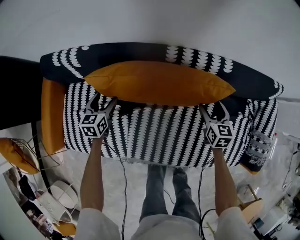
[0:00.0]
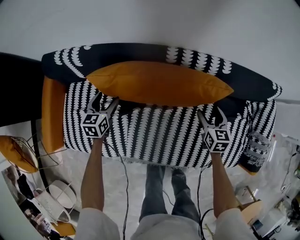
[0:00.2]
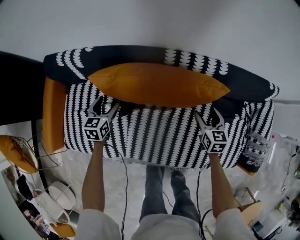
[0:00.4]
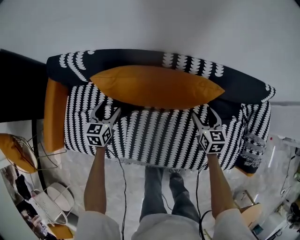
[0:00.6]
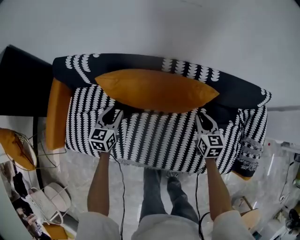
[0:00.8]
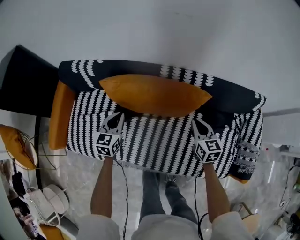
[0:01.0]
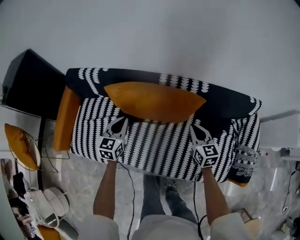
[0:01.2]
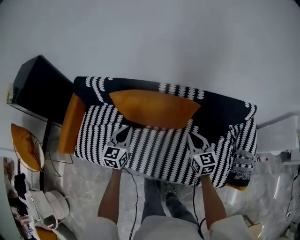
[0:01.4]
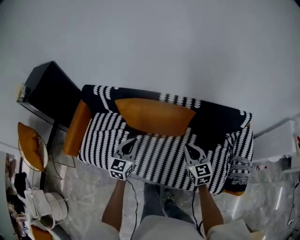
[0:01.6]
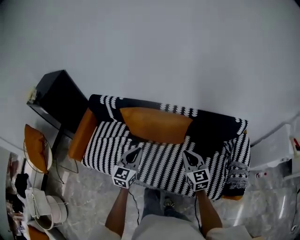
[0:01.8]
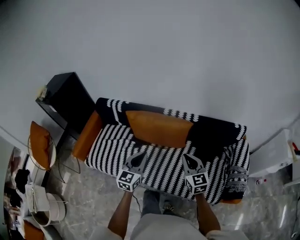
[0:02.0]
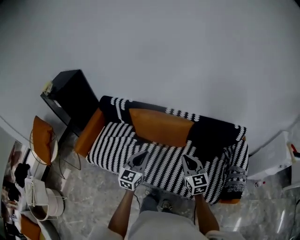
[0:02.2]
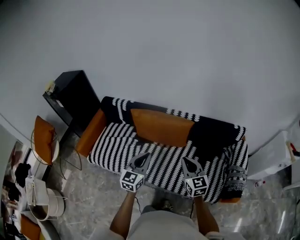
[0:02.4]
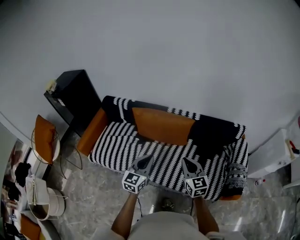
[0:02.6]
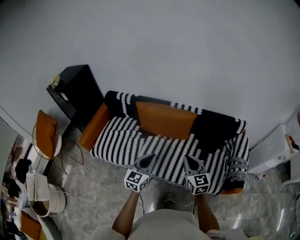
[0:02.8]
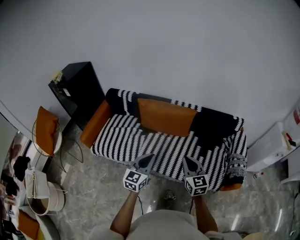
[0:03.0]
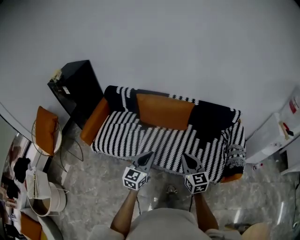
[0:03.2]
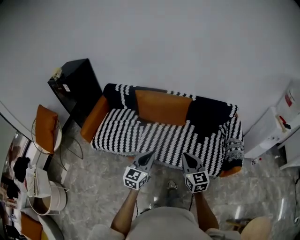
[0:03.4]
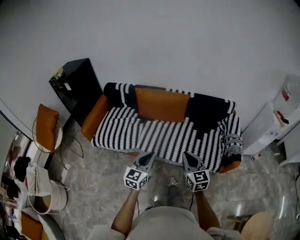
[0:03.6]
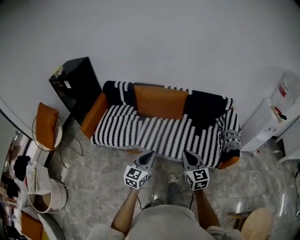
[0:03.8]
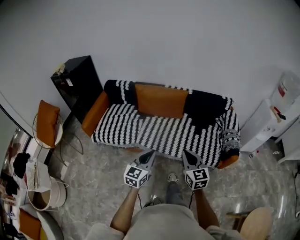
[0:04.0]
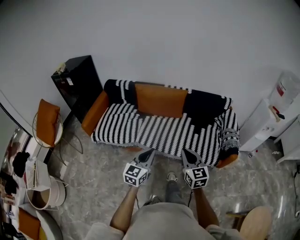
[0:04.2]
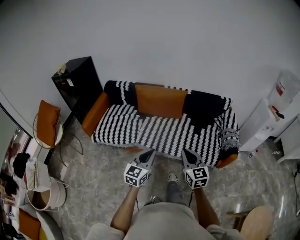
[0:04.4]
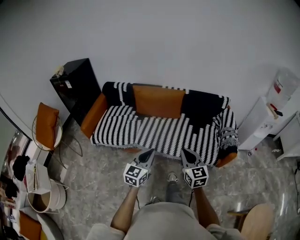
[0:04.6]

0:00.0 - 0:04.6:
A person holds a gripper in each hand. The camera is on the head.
0:00.0 - 0:01.6: The left gripper moves upward, backward and to the right, approximately 40 cm, changes its angle by approximately 20 degrees, and closes up; the right gripper moves upward and backward, roughly 30 cm, changes its angle by approximately 30 degrees, and closes its fingers.
0:01.6 - 0:03.0: Both grippers travel together backward, roughly 25 cm.
0:03.0 - 0:04.6: The grippers both shift backward by some 20 cm.

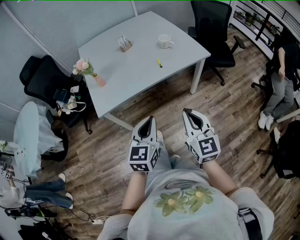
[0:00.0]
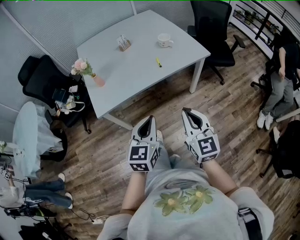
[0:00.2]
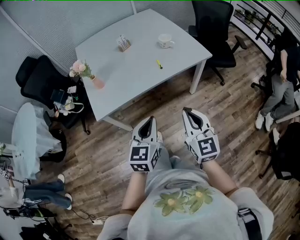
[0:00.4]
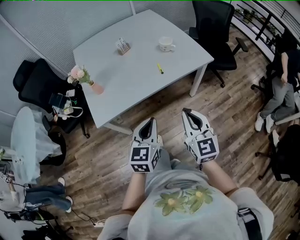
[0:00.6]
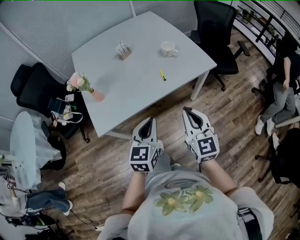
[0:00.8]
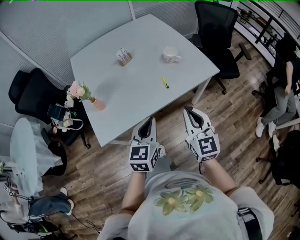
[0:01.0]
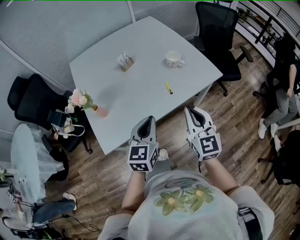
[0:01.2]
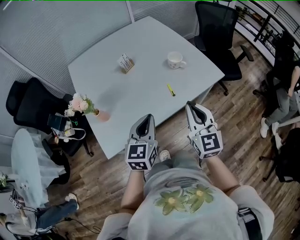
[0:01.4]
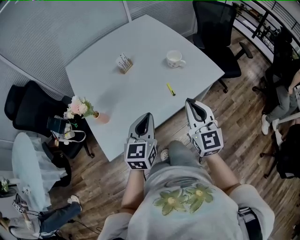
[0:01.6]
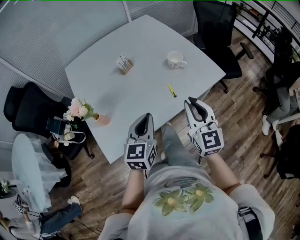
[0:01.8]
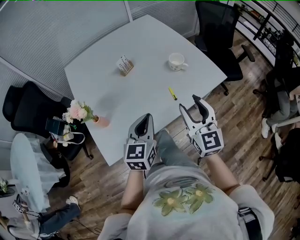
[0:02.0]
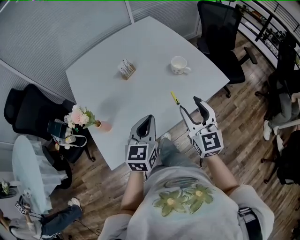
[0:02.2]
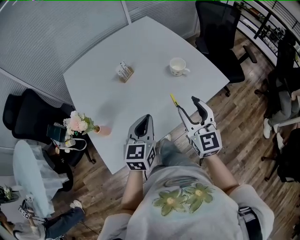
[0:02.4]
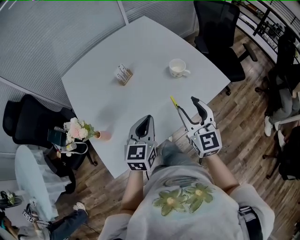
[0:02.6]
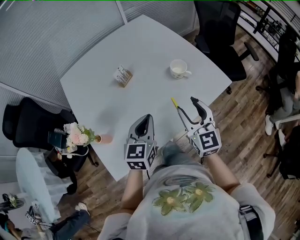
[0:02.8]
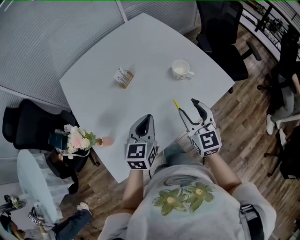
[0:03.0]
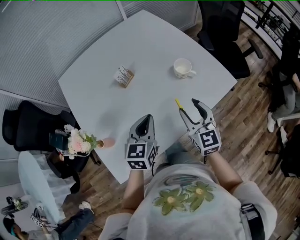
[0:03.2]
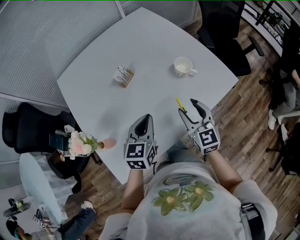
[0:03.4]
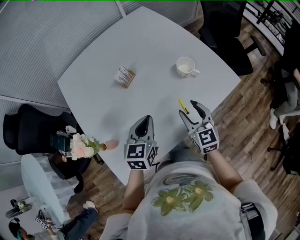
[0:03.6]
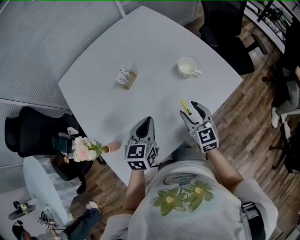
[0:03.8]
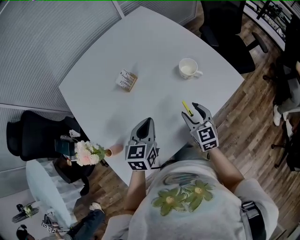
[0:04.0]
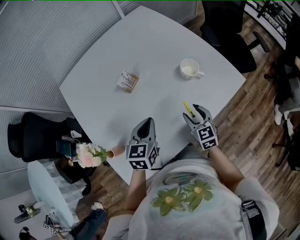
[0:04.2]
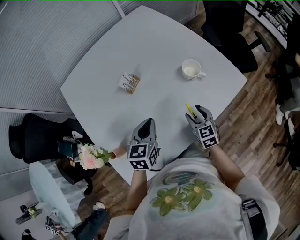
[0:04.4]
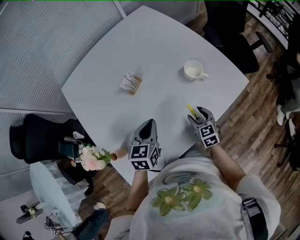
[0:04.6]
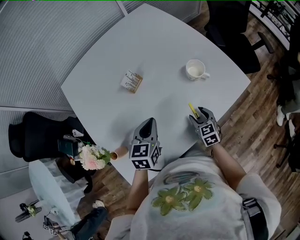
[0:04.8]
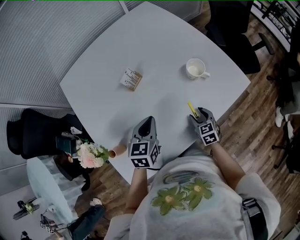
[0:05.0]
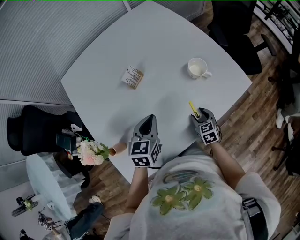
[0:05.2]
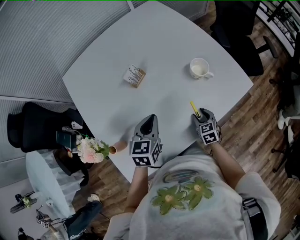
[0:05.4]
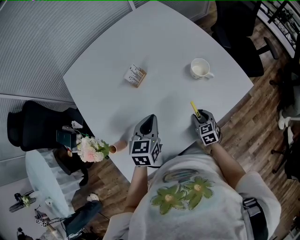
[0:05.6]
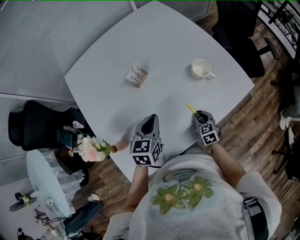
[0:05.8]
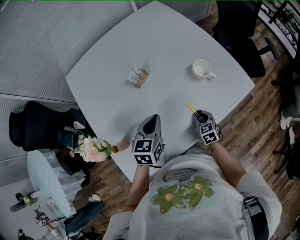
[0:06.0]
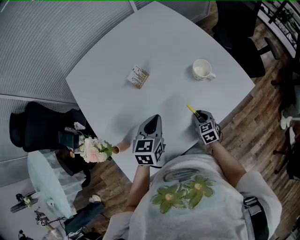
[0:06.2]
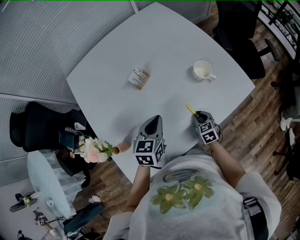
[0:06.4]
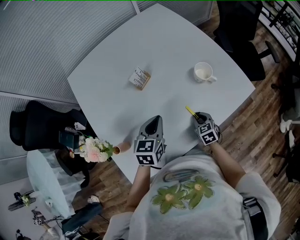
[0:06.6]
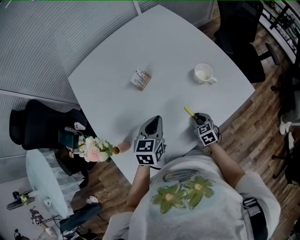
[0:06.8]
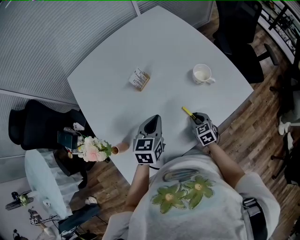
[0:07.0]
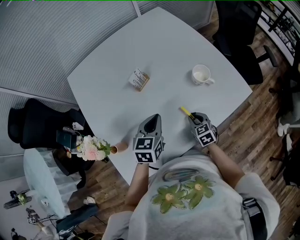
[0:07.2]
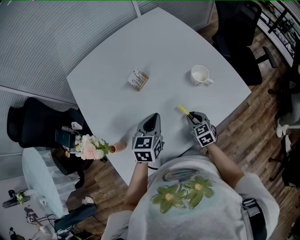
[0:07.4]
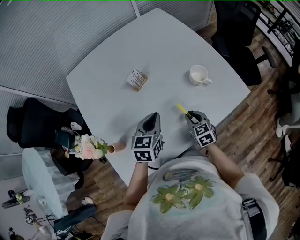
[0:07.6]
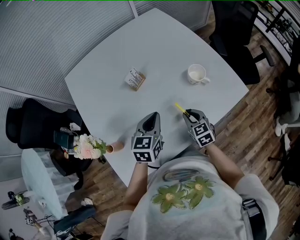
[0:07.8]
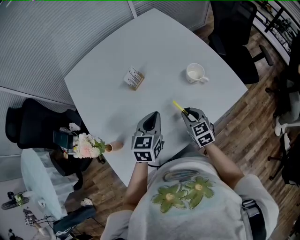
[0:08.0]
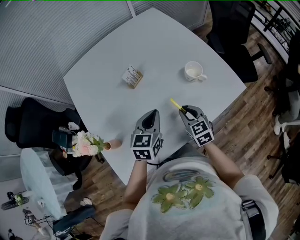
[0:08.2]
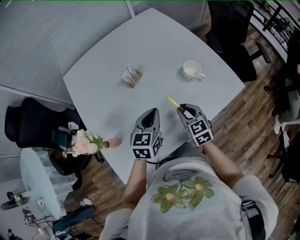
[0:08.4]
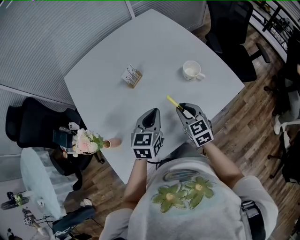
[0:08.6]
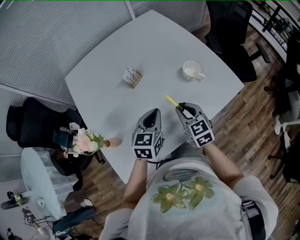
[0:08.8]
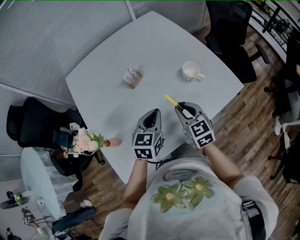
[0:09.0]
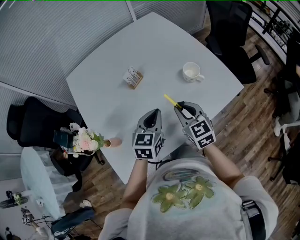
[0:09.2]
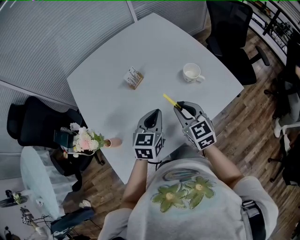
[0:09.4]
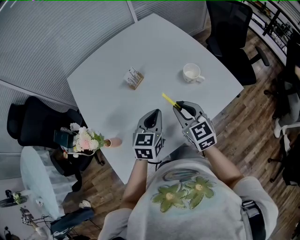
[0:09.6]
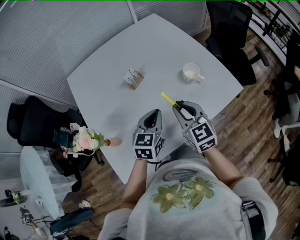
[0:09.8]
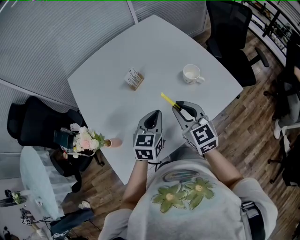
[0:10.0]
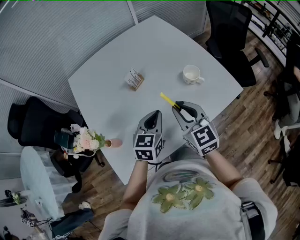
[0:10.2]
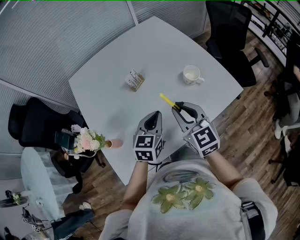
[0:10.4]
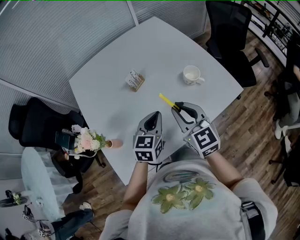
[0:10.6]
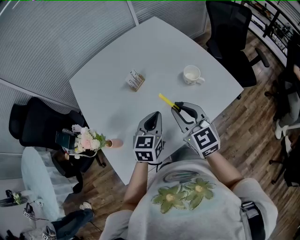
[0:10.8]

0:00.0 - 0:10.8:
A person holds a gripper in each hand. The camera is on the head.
0:00.0 - 0:01.6: Both grippers travel together forward, some 30 cm.
0:01.6 - 0:03.0: The left gripper heads forward, covering about 15 cm. Meanwhile the right gripper heads forward and downward, covering approximately 15 cm, and opens its fingers.
0:03.0 - 0:04.6: The left gripper heads forward, downward and to the left, covering approximately 10 cm. Meanwhile the right gripper is displaced downward by about 20 cm, and swivels approximately 30 degrees.
0:04.6 - 0:06.2: The right gripper heads downward, covering approximately 5 cm, and closes its fingers.
0:06.2 - 0:07.8: The right gripper shifts roughly 10 cm upward.
0:07.8 - 0:09.2: The right gripper goes about 15 cm upward.
0:09.2 - 0:10.8: The right gripper shifts about 10 cm upward.

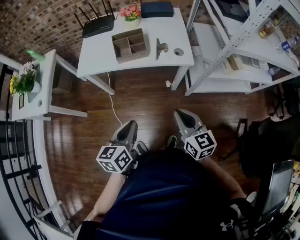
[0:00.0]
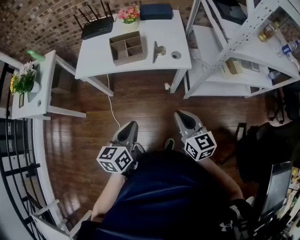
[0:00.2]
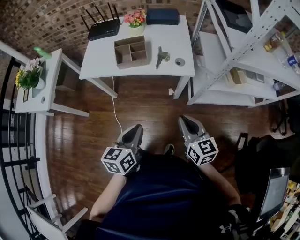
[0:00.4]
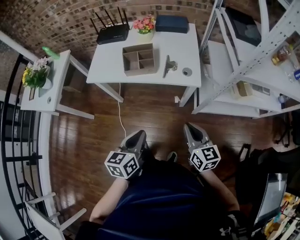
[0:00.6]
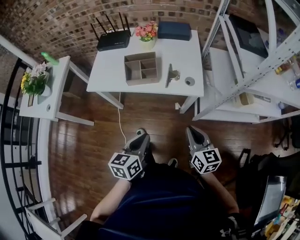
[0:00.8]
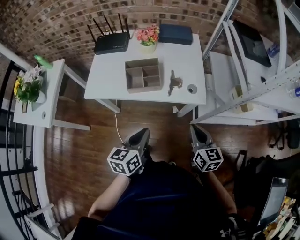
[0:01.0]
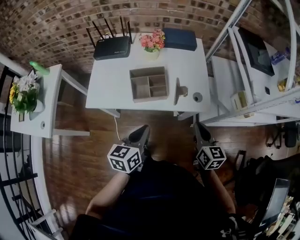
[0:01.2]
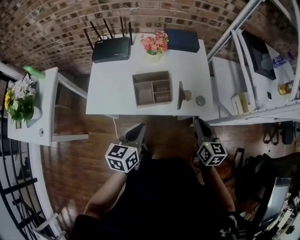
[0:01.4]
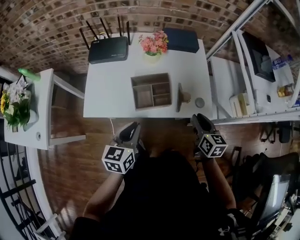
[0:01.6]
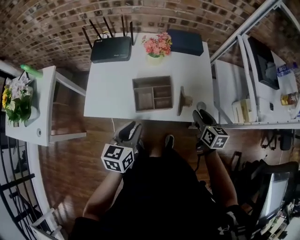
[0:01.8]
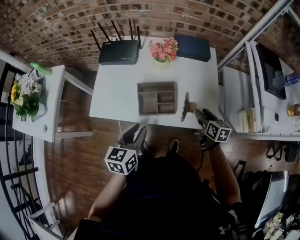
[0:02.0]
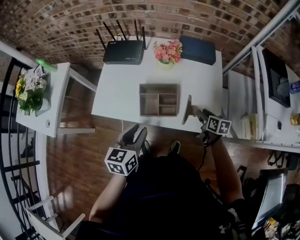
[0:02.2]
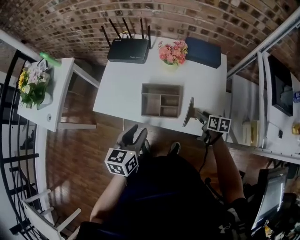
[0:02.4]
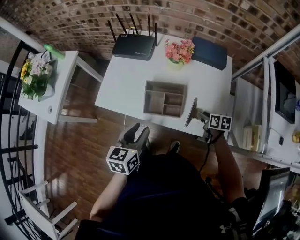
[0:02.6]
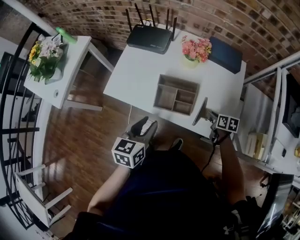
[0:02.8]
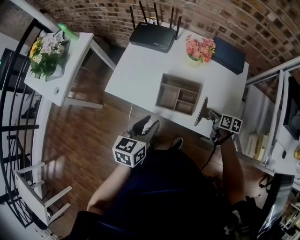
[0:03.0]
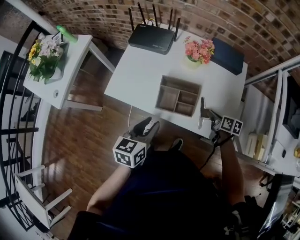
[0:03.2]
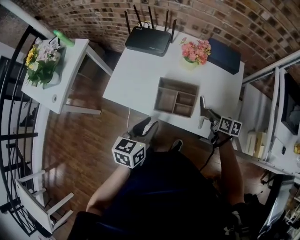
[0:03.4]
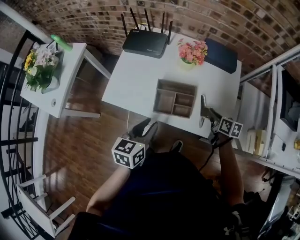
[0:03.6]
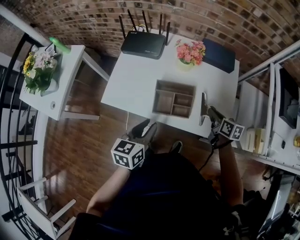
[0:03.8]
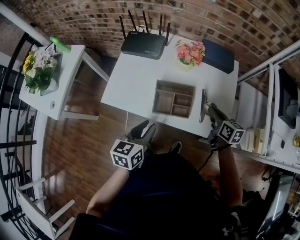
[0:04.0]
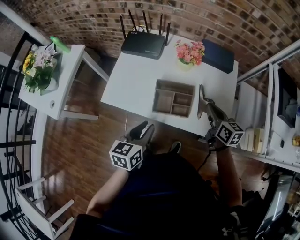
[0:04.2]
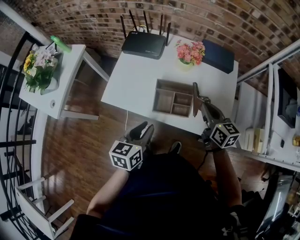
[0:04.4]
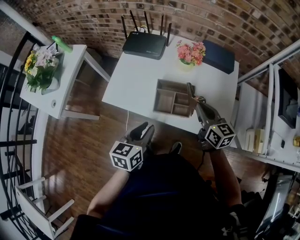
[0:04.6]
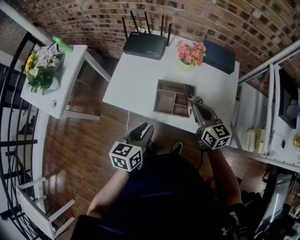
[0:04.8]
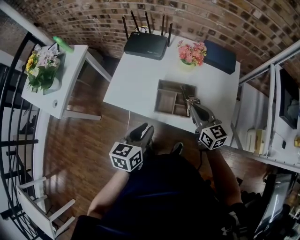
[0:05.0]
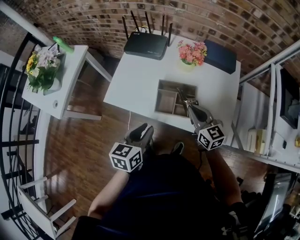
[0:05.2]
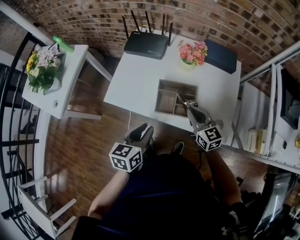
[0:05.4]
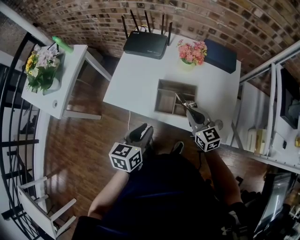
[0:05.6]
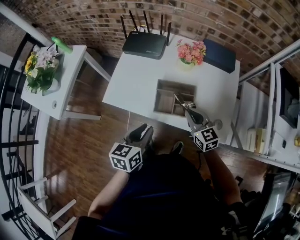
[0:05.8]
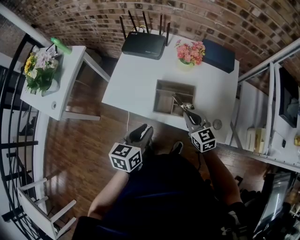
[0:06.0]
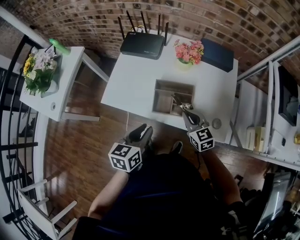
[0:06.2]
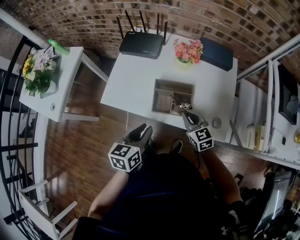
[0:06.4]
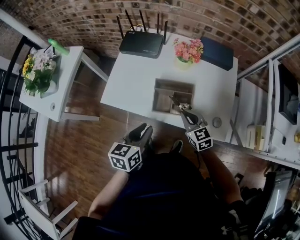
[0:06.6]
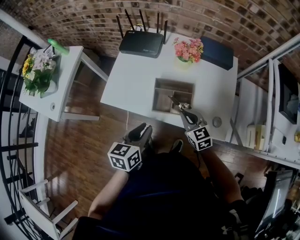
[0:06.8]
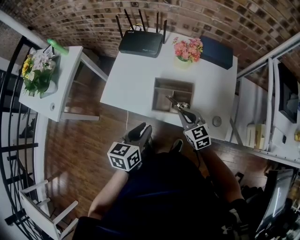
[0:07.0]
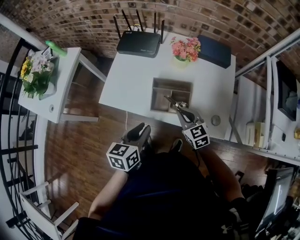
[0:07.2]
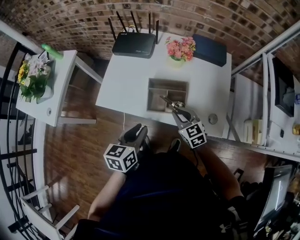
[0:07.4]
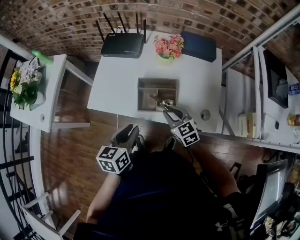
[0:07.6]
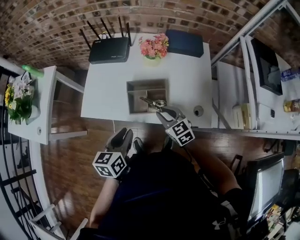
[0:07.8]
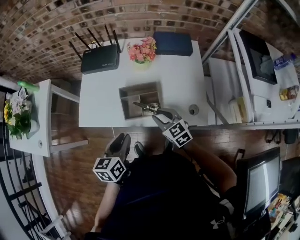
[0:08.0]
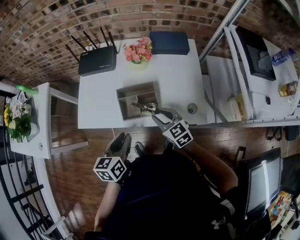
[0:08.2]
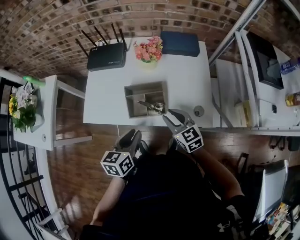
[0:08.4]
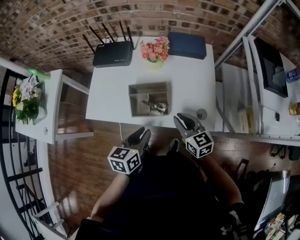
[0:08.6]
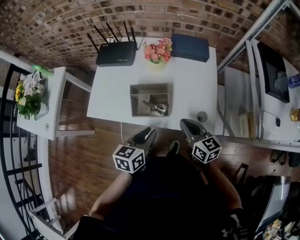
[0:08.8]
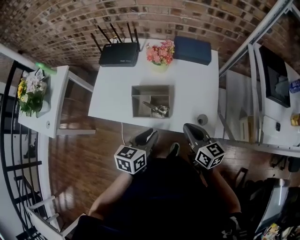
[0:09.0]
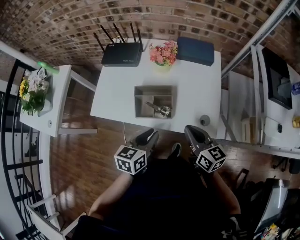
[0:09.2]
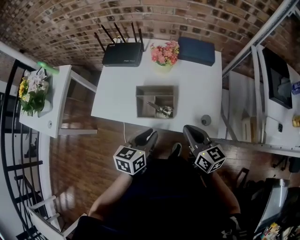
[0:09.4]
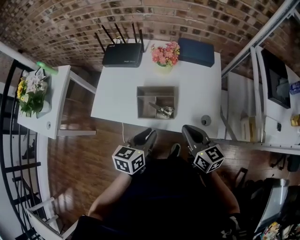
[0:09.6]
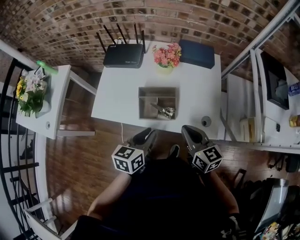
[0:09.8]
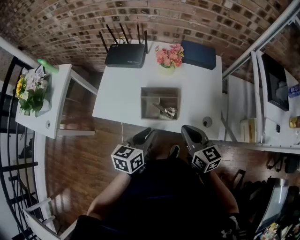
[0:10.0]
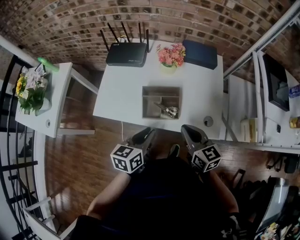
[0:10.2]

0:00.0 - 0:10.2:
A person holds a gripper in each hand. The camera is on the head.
0:00.0 - 0:01.4: The two grippers go roughly 25 cm forward.
0:01.4 - 0:03.0: The left gripper opens up. The right gripper heads downward, covering roughly 20 cm, turns by about 40 degrees, and opens and closes again.
0:03.0 - 0:04.4: The right gripper is displaced upward and to the left by roughly 20 cm, and swivels some 40 degrees.
0:04.4 - 0:05.8: The right gripper shifts roughly 10 cm downward and to the left, and rotates some 20 degrees.
0:05.8 - 0:07.2: The grippers move only a little.
0:07.2 - 0:08.8: The left gripper goes roughly 10 cm to the right. The right gripper travels to the right and upward by approximately 10 cm, rotates about 30 degrees, and opens and closes again.
0:08.8 - 0:10.2: Both grippers move to the left, about 5 cm.
